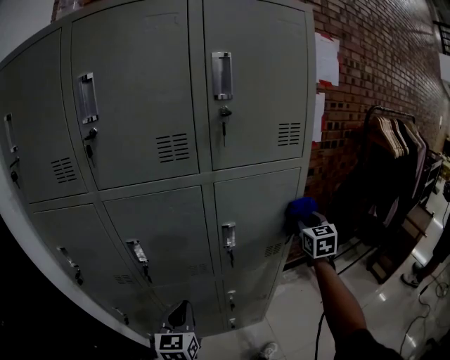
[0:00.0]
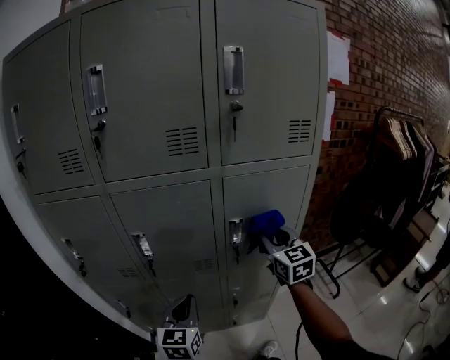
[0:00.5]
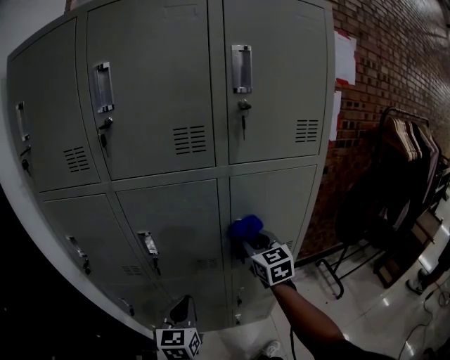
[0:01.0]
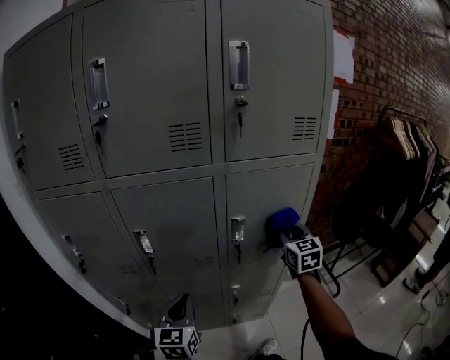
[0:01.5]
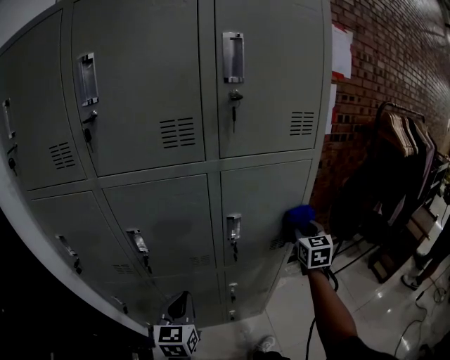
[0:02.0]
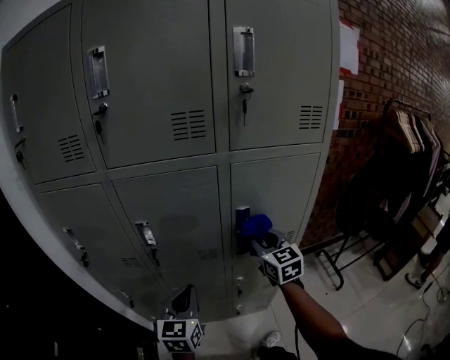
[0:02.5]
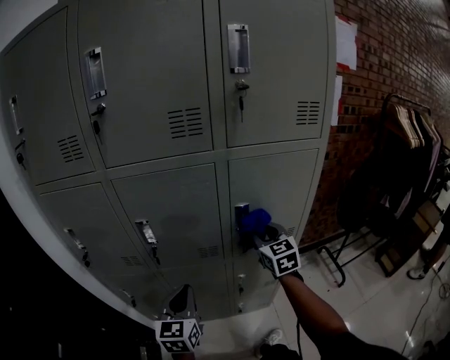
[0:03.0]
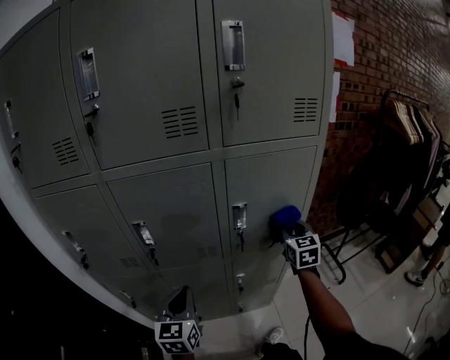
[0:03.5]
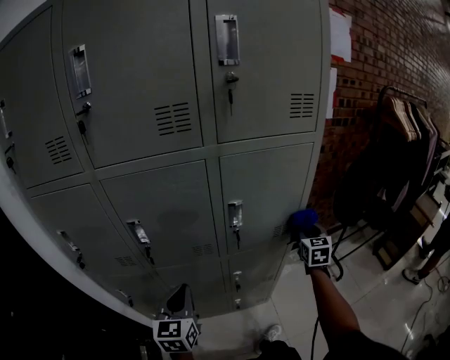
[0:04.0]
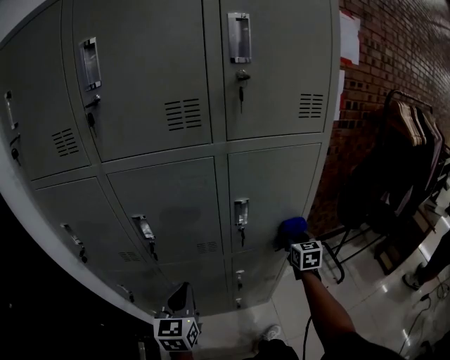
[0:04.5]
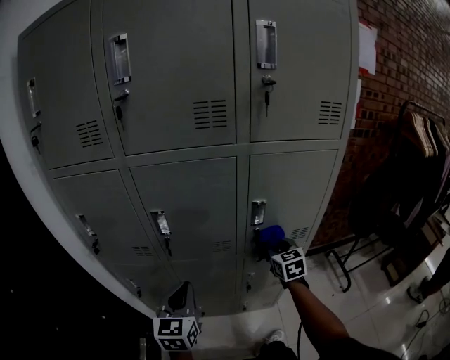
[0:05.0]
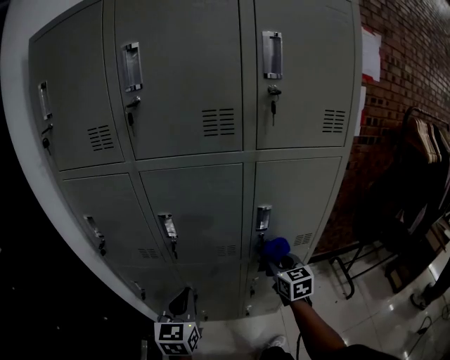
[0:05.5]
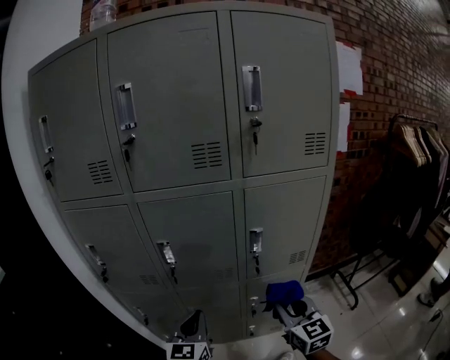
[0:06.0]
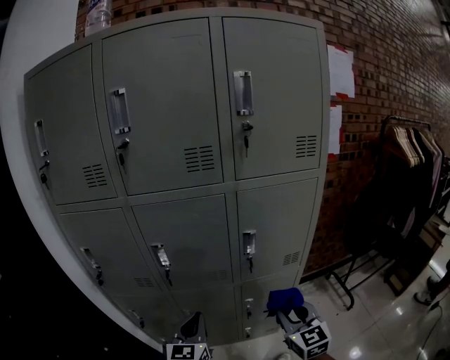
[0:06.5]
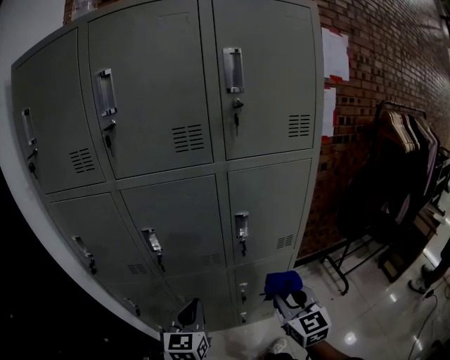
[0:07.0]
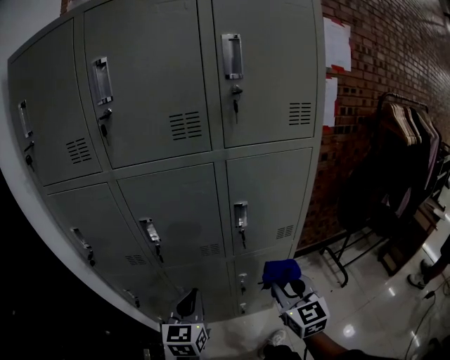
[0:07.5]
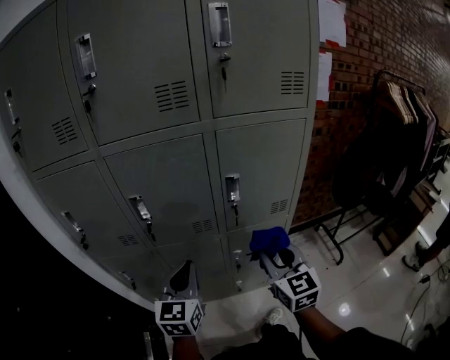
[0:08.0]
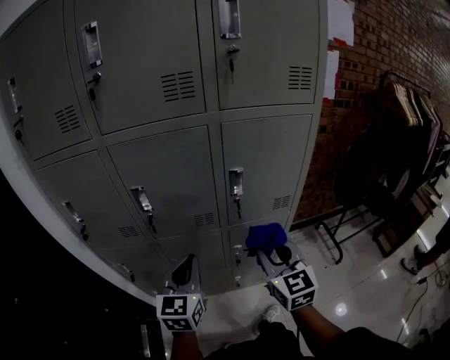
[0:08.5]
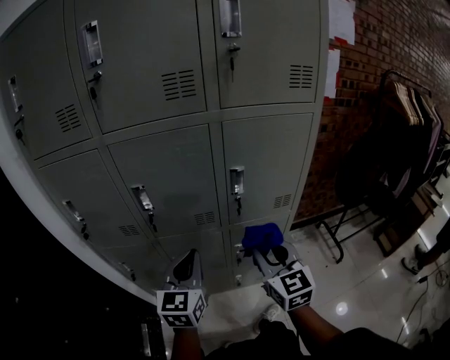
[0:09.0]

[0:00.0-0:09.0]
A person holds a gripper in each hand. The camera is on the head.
0:00.0 to 0:02.0: The right gripper heads downward, covering about 5 cm, and reaches some 25 cm to the left, then returns.
0:02.0 to 0:04.5: The right gripper moves left and right over approximately 20 cm, changing direction 2 times.
0:04.5 to 0:07.0: The right gripper is displaced backward and to the left by about 25 cm, and rotates roughly 20 degrees.
0:07.0 to 0:09.0: The right gripper moves roughly 5 cm.

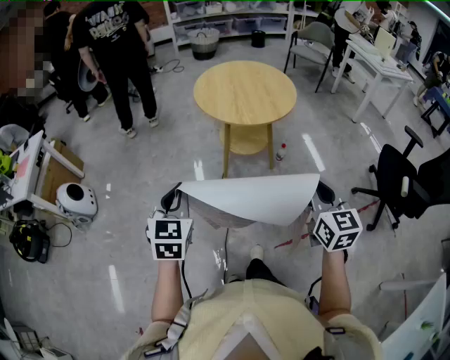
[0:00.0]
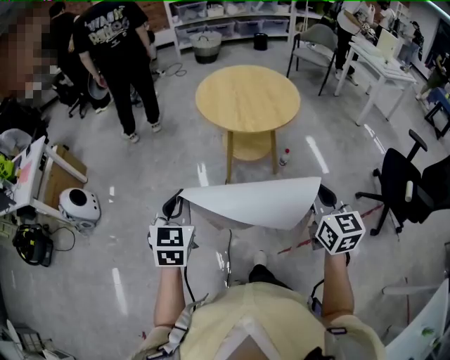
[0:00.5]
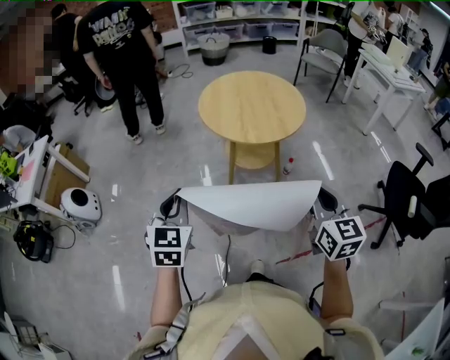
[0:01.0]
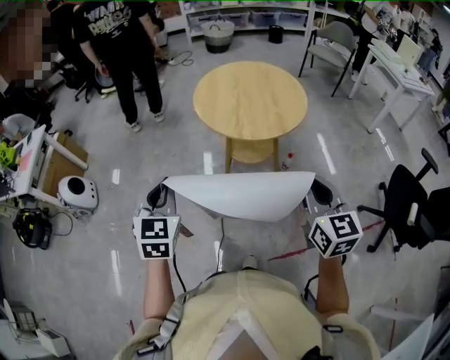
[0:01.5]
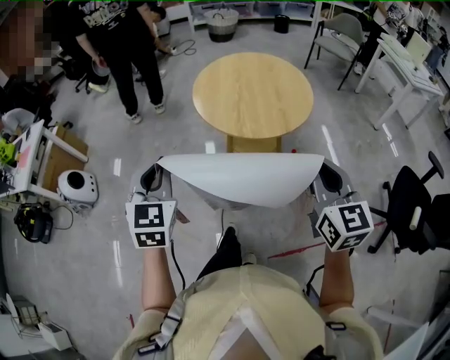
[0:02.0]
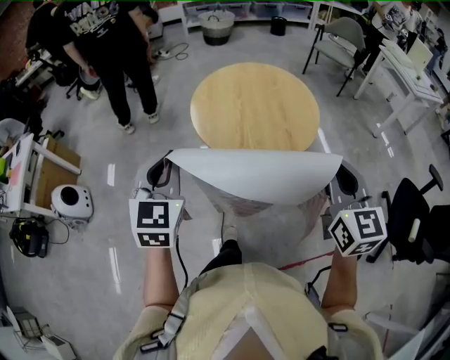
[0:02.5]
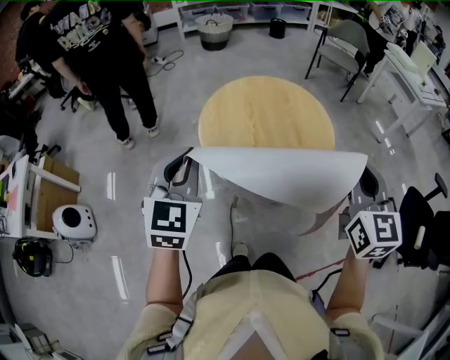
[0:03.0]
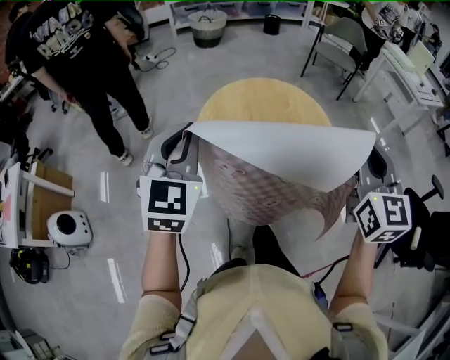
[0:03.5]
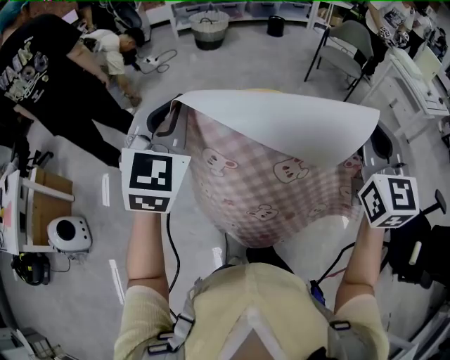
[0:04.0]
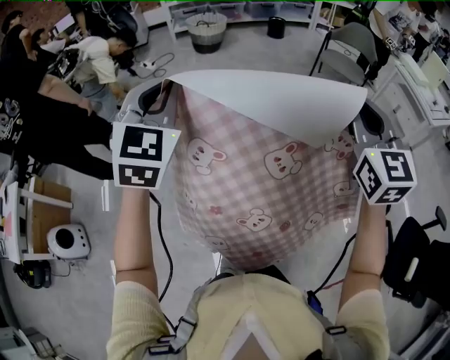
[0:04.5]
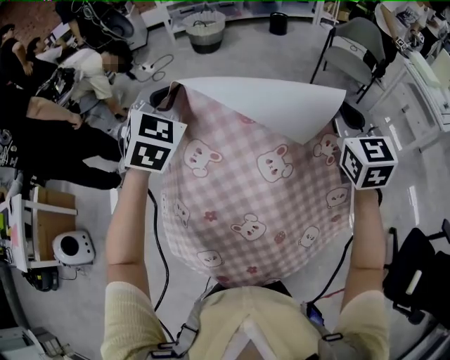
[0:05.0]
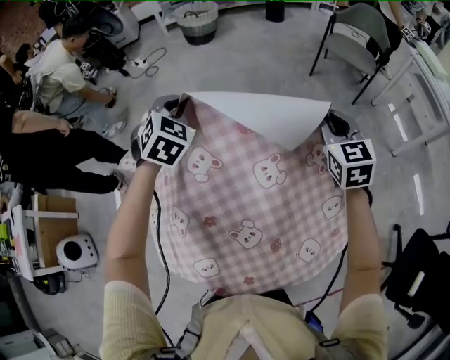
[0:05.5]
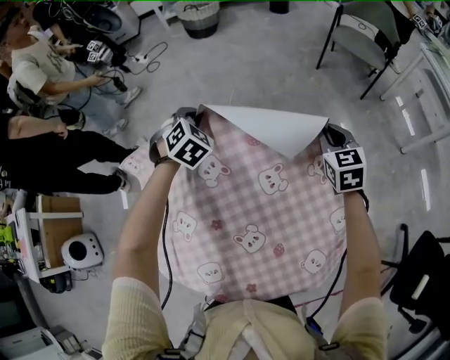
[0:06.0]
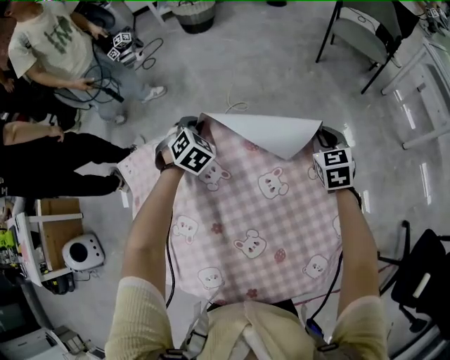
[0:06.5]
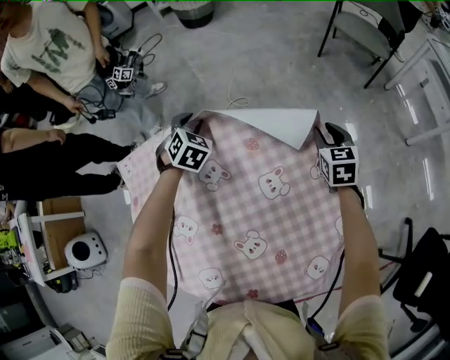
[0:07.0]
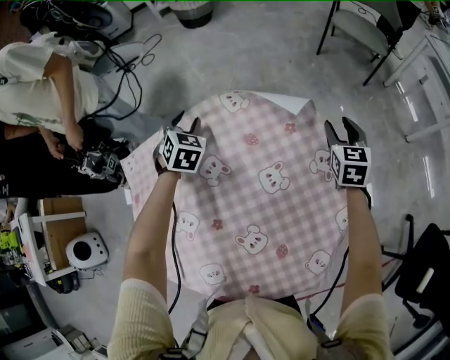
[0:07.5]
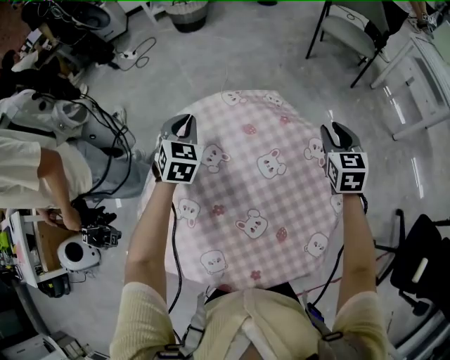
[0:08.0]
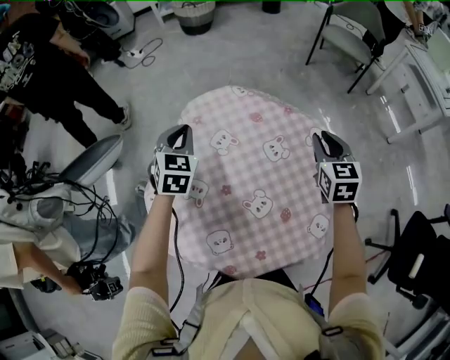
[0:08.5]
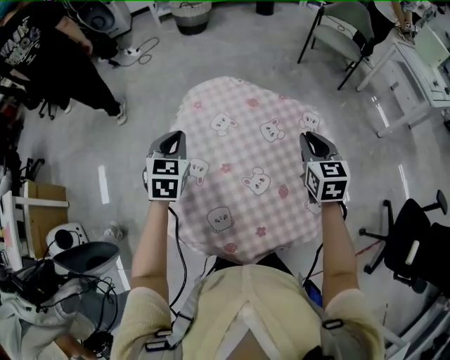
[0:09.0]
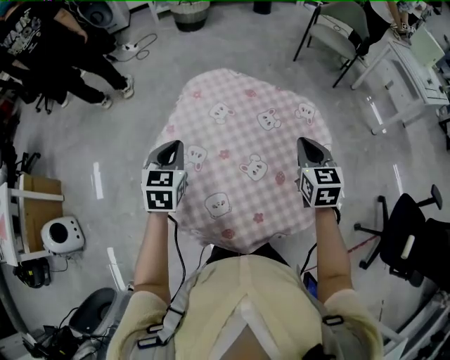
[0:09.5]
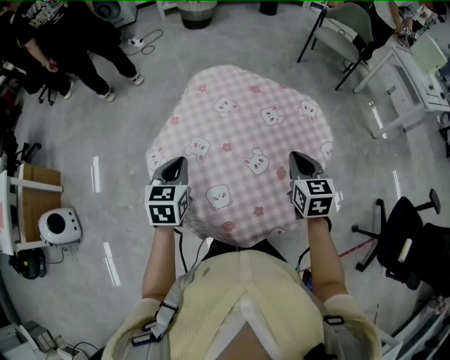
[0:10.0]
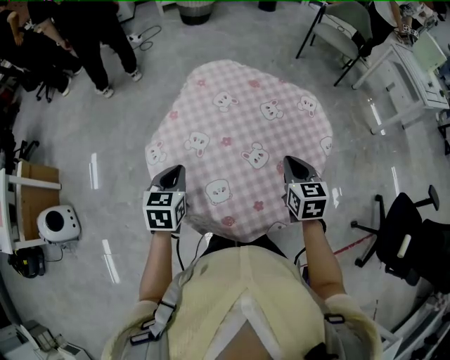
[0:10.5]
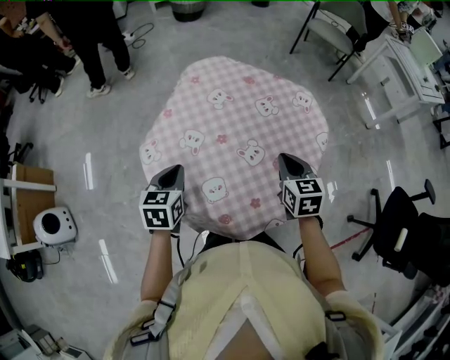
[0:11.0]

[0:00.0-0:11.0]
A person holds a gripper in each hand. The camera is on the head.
0:00.0 to 0:02.0: Both grippers move forward, roughly 20 cm.
0:02.0 to 0:03.5: Both grippers travel together forward, some 35 cm.
0:03.5 to 0:05.5: The two grippers travel together, forward, approximately 50 cm. The right gripper rotates some 20 degrees. Meanwhile the left gripper turns by some 30 degrees.
0:05.5 to 0:07.5: The right gripper travels downward and to the right by about 15 cm, and opens. Meanwhile the left gripper moves downward, some 15 cm, and opens its fingers.
0:07.5 to 0:09.0: The right gripper goes about 30 cm backward, to the left and upward, and closes its fingers, while the left gripper moves backward and upward, roughly 30 cm, turns by about 20 degrees, and closes its fingers.
0:09.0 to 0:11.0: The left gripper goes approximately 20 cm backward, and rotates some 20 degrees; the right gripper is displaced backward and downward by roughly 15 cm.

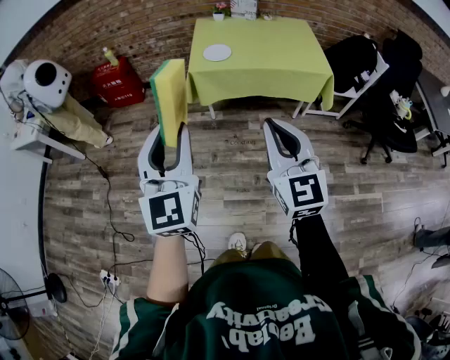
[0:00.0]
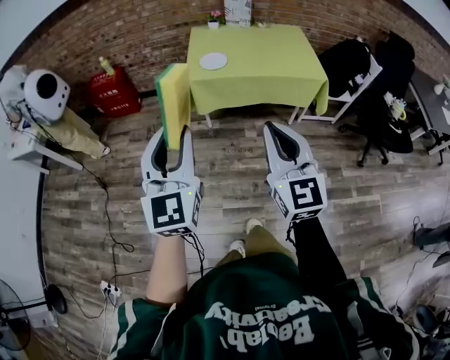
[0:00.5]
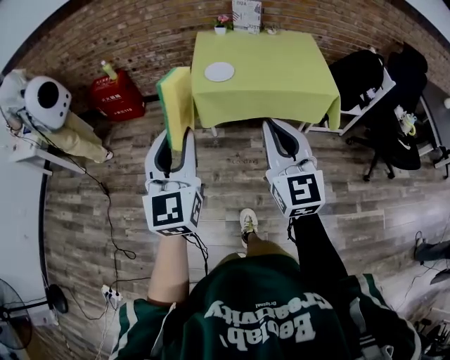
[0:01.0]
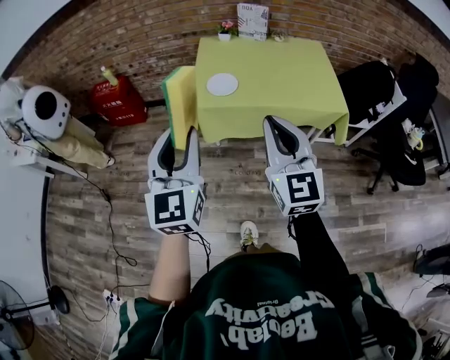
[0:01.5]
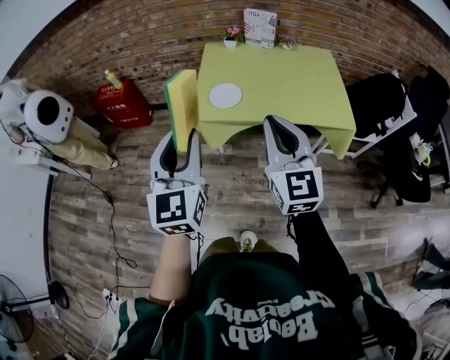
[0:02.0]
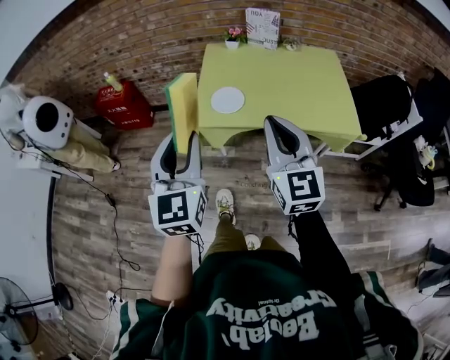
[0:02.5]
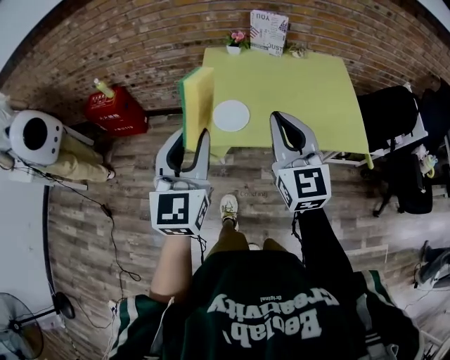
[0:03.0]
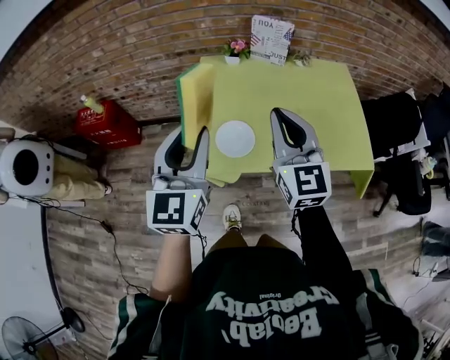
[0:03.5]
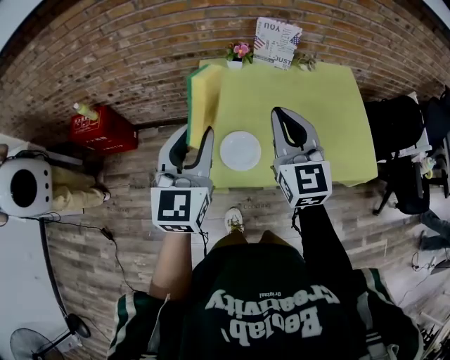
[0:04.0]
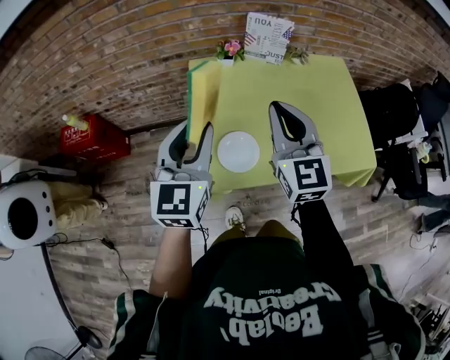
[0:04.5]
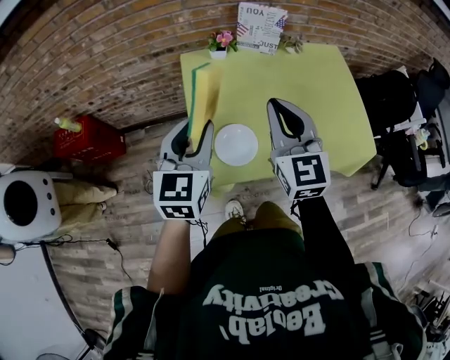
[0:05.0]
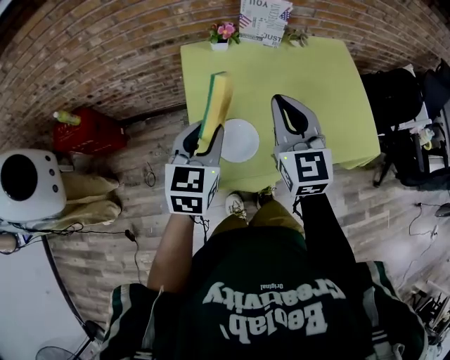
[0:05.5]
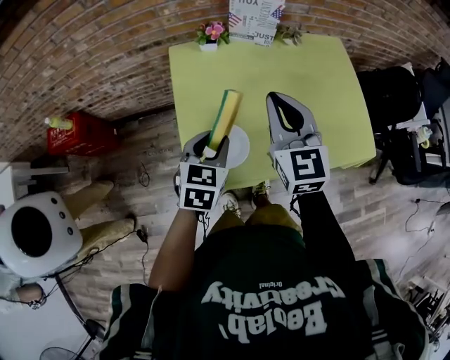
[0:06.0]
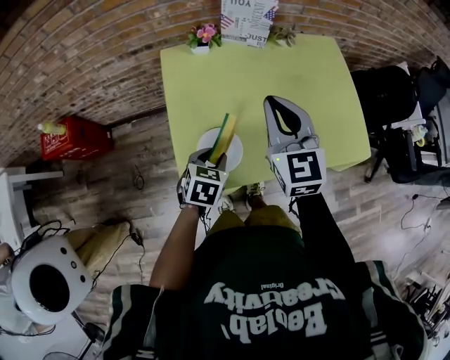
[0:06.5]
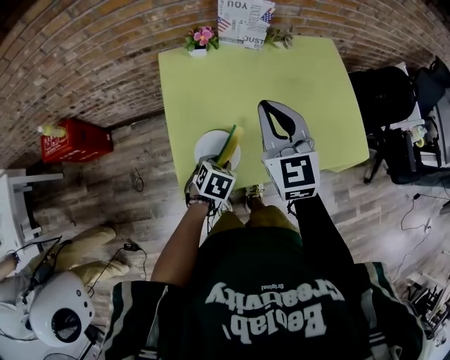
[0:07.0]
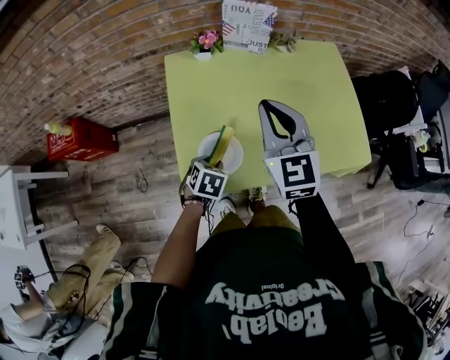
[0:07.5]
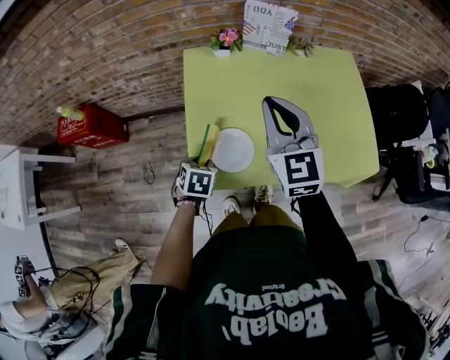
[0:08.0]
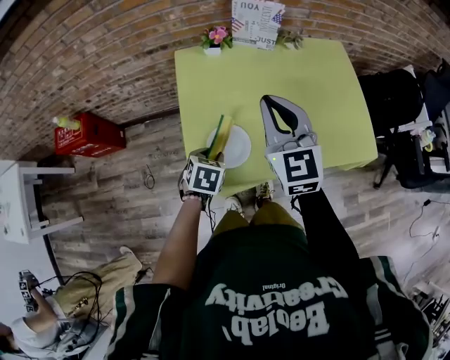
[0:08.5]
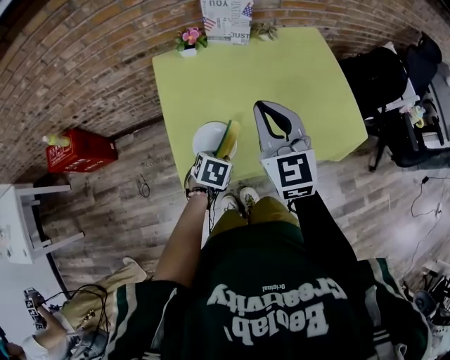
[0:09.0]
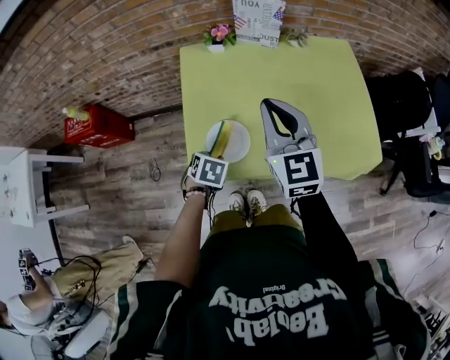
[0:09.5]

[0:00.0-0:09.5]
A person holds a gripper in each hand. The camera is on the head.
0:00.0 to 0:02.0: Both grippers move forward, roughly 30 cm.
0:02.0 to 0:04.0: The two grippers go about 40 cm forward.
0:04.0 to 0:05.5: The left gripper heads downward, covering roughly 10 cm, and turns by approximately 20 degrees. The right gripper ends up some 5 cm from where it was.
0:05.5 to 0:07.5: The right gripper moves some 5 cm, while the left gripper goes roughly 20 cm downward, and angles its fingers downward, by approximately 40 degrees.
0:07.5 to 0:09.5: The left gripper swings left and right, approximately 10 cm each way, with 2 reversals.
